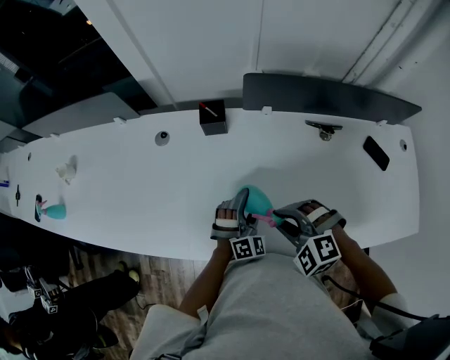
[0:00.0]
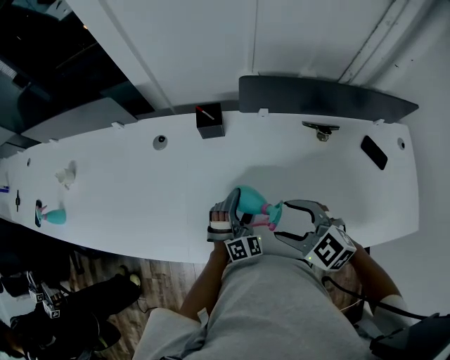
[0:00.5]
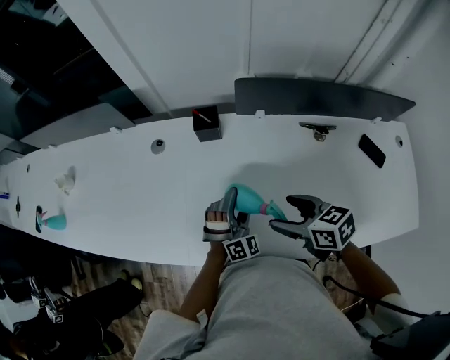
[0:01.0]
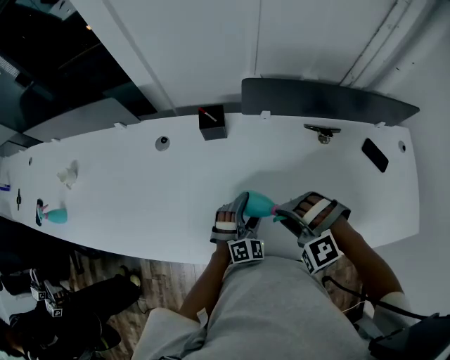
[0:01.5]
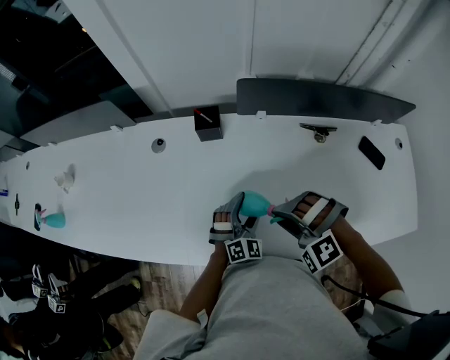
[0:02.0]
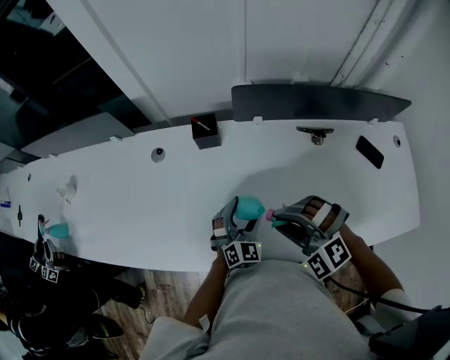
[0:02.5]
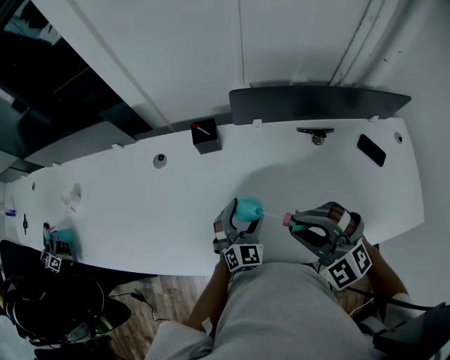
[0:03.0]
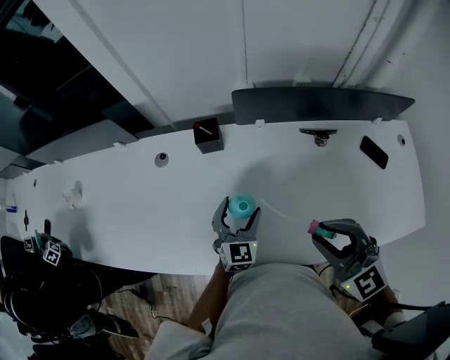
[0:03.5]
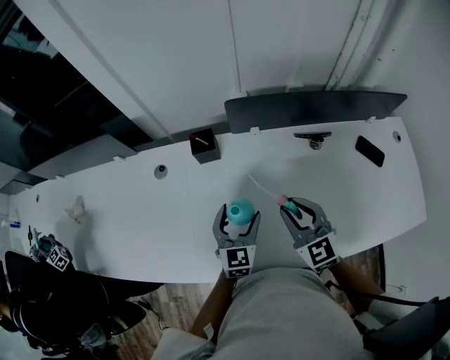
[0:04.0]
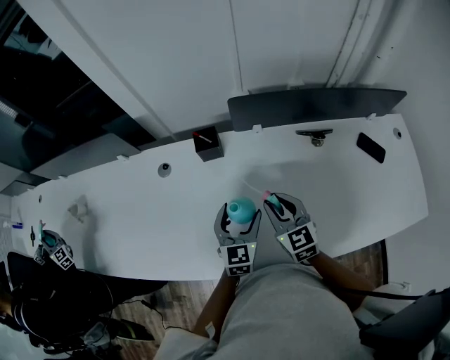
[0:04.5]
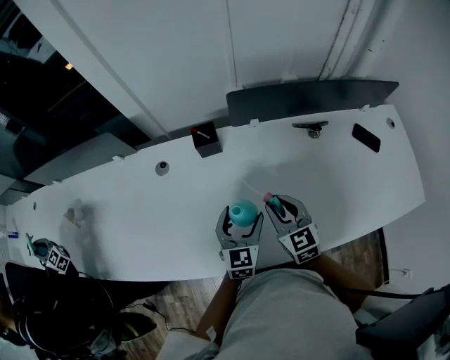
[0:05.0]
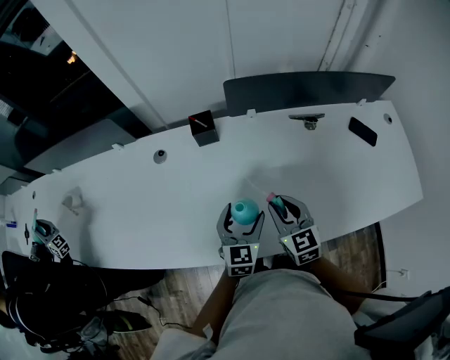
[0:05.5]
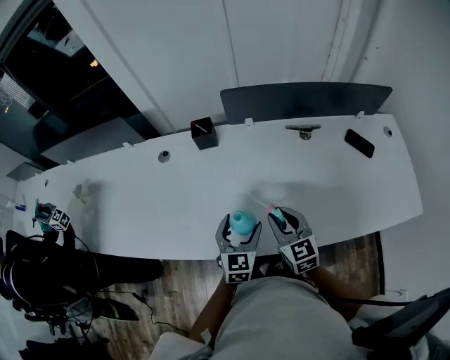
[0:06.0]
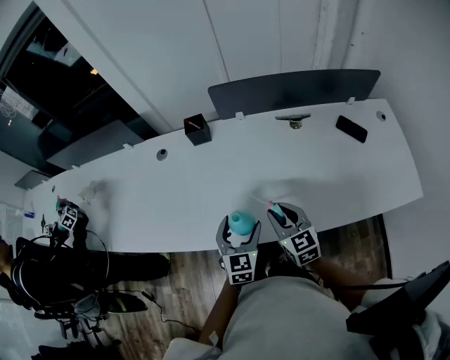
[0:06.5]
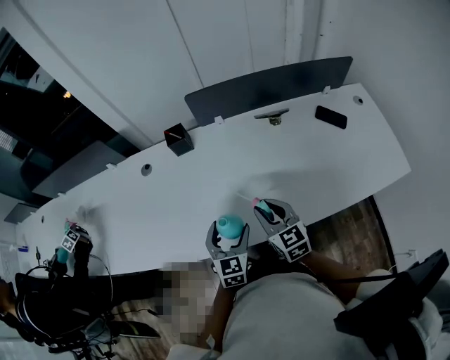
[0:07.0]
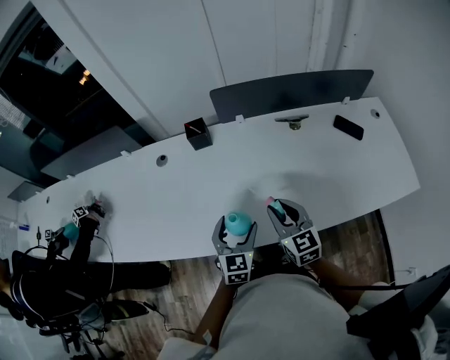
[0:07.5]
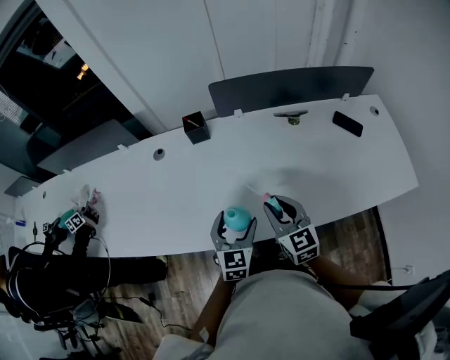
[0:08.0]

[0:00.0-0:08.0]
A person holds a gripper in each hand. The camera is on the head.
0:00.0 to 0:02.0: The right gripper changes its angle by some 30 degrees, and opens, then closes once more.
0:02.0 to 0:04.0: The right gripper travels to the right and forward by about 10 cm, goes upward and returns, roughly 10 cm each way, and twists some 70 degrees clockwise, seen from behind, while the left gripper shifts some 5 cm upward, and rotates some 40 degrees.
0:04.0 to 0:06.0: The two grippers go approximately 10 cm backward.
0:06.0 to 0:08.0: The grippers stay close to where they were, moving slightly.

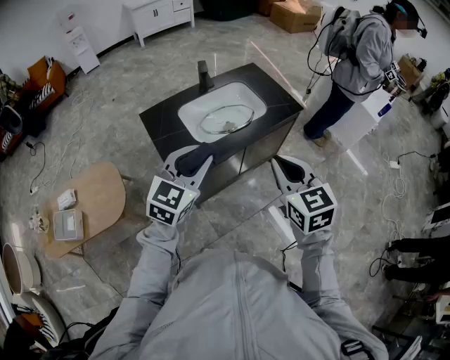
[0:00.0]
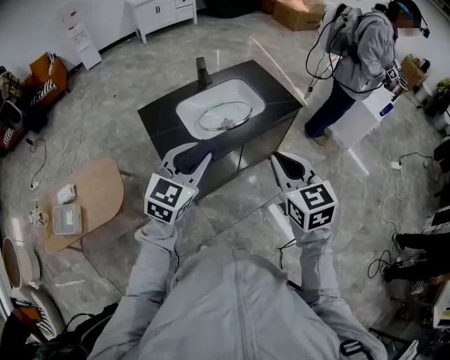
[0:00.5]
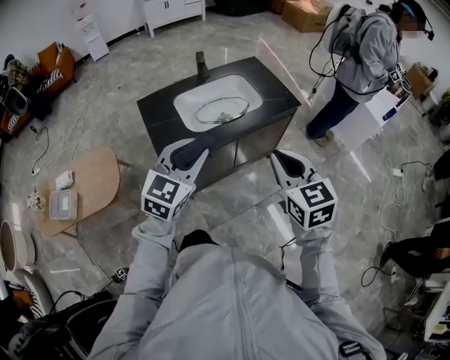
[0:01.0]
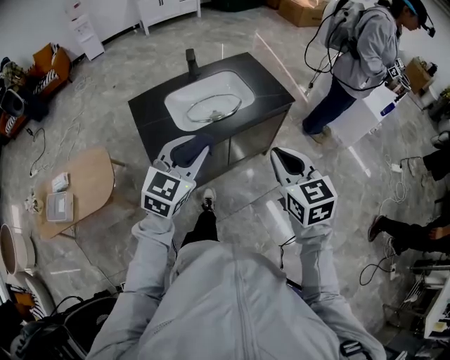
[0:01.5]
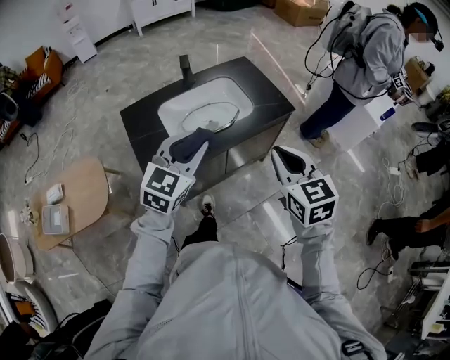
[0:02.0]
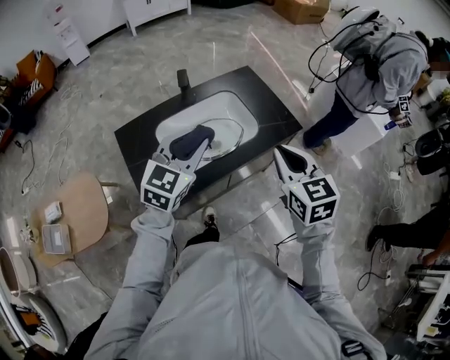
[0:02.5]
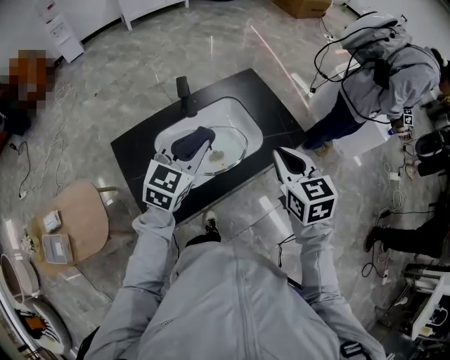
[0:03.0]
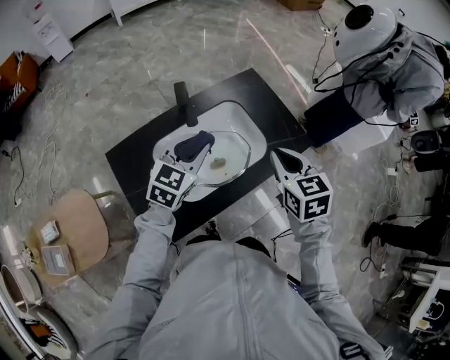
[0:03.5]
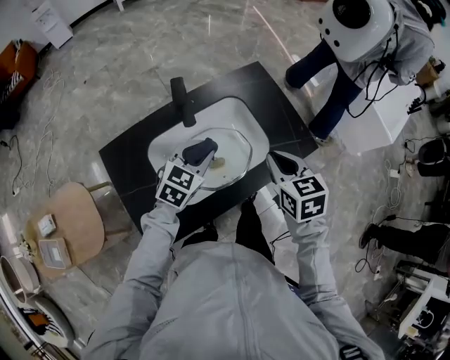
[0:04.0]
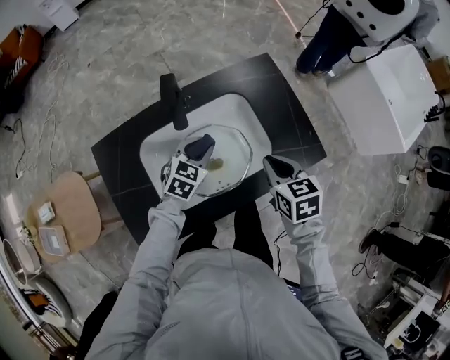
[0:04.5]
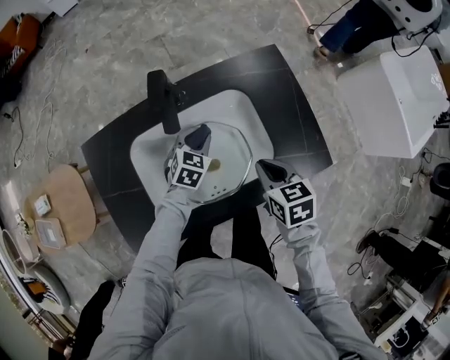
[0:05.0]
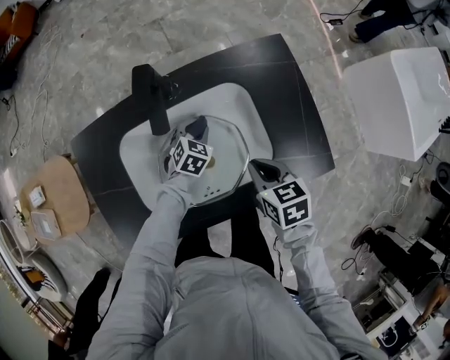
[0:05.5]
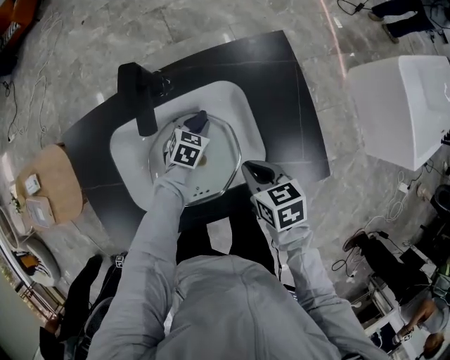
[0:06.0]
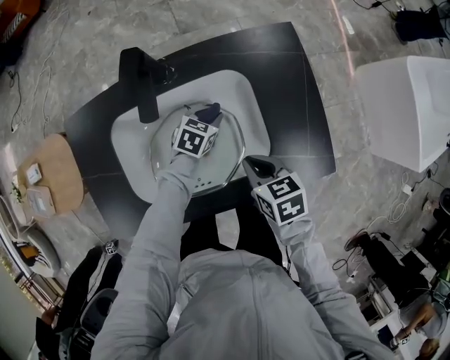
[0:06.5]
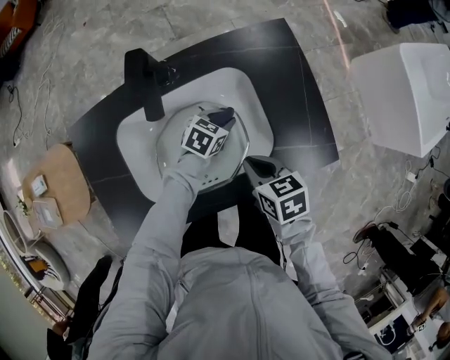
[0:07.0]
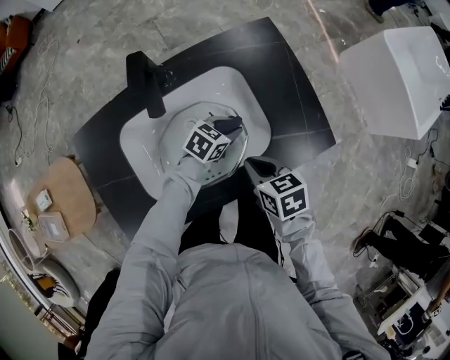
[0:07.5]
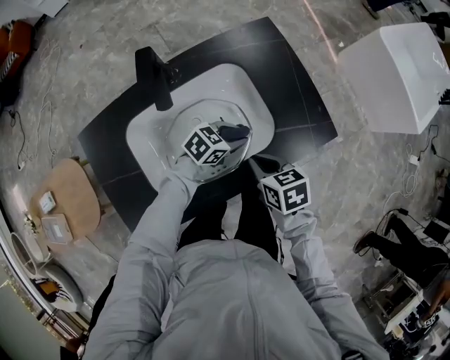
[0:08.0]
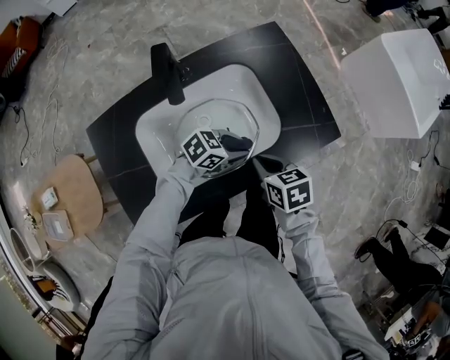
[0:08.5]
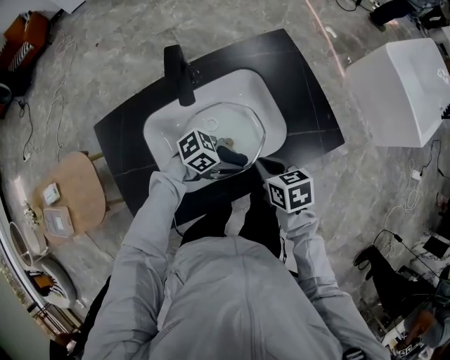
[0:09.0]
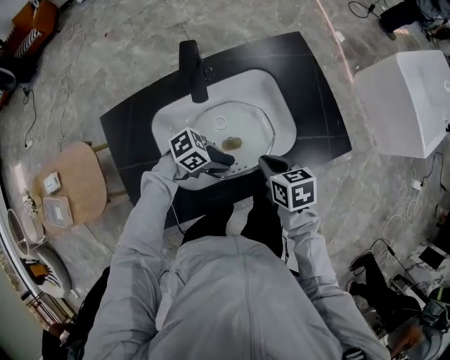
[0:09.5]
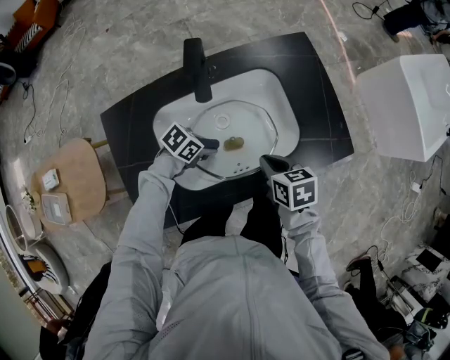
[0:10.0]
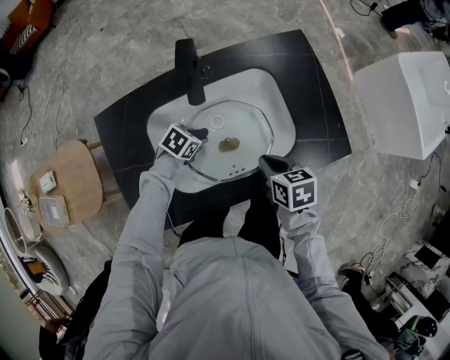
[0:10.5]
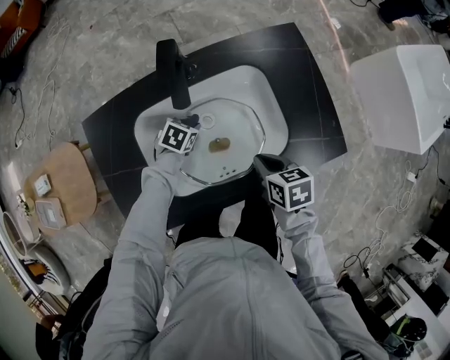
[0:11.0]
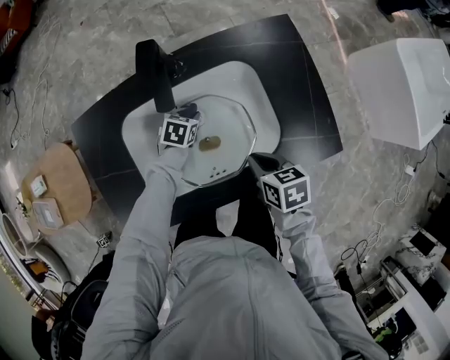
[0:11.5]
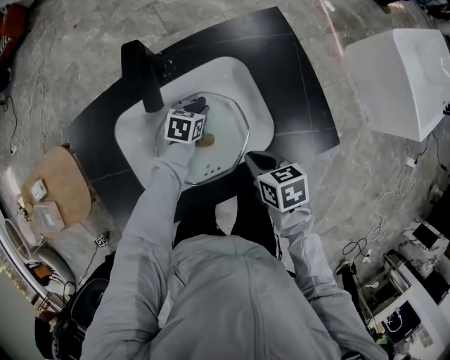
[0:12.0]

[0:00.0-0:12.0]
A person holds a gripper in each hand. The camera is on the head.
0:00.0 to 0:02.0: Both grippers move forward and to the right, roughly 15 cm.
0:02.0 to 0:04.0: Both grippers travel together forward and downward, roughly 35 cm. The right gripper rotates roughly 20 degrees. Meanwhile the left gripper swivels about 20 degrees.
0:04.0 to 0:06.0: The grippers both shift downward by some 25 cm. The left gripper changes its angle by about 30 degrees. Meanwhile the right gripper rotates about 30 degrees.
0:06.0 to 0:08.0: The left gripper moves roughly 20 cm, and changes its angle by about 40 degrees. The right gripper changes place by approximately 5 cm.
0:08.0 to 0:10.0: The left gripper shifts by some 20 cm, and changes its angle by approximately 20 degrees.
0:10.0 to 0:12.0: The left gripper moves about 15 cm, and turns by about 30 degrees.

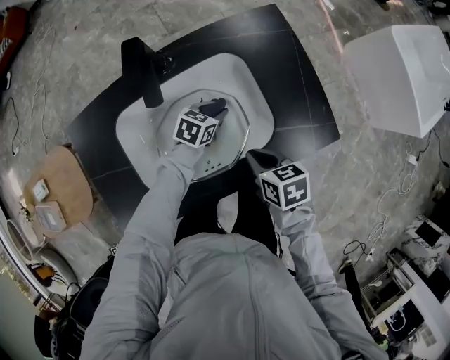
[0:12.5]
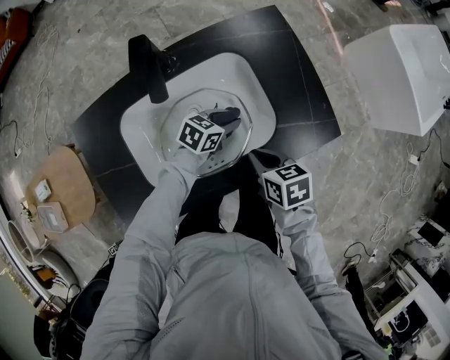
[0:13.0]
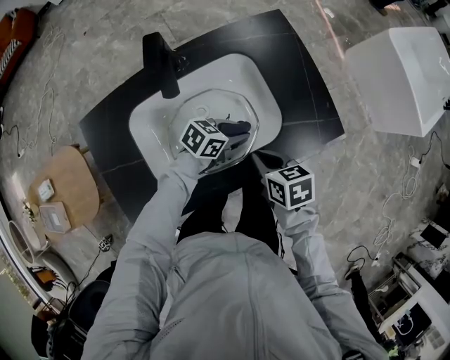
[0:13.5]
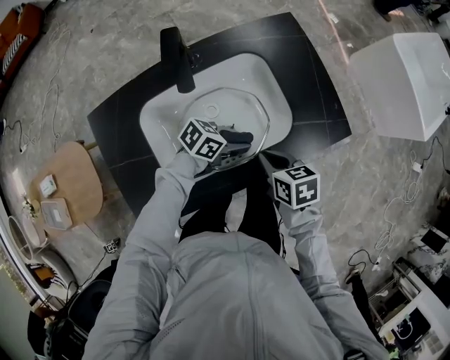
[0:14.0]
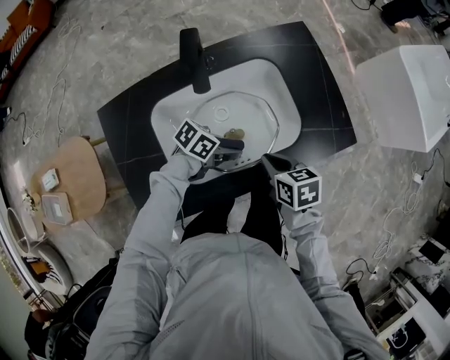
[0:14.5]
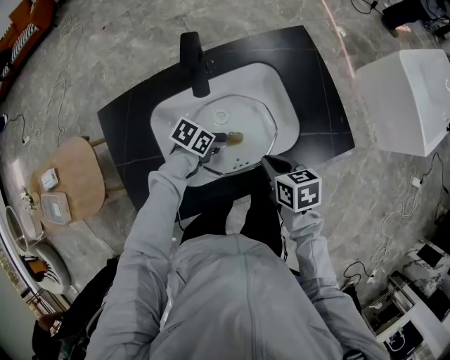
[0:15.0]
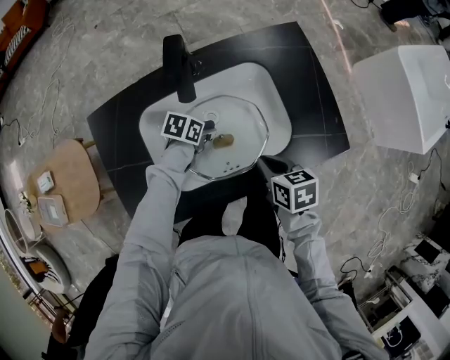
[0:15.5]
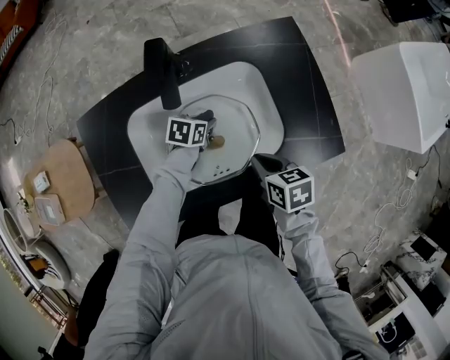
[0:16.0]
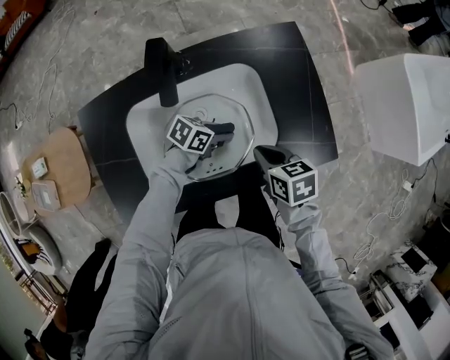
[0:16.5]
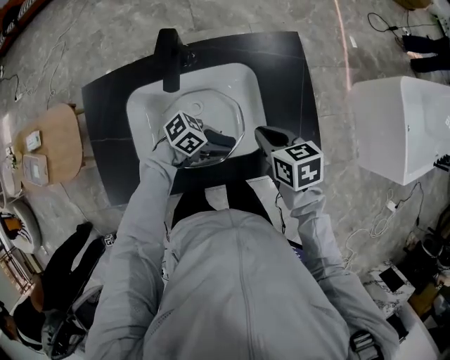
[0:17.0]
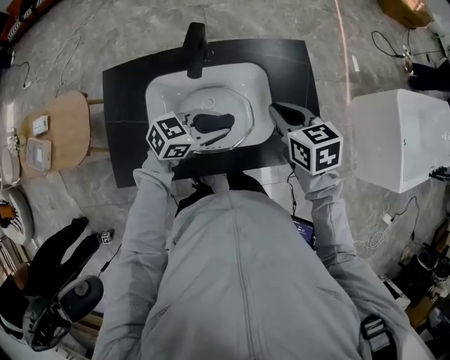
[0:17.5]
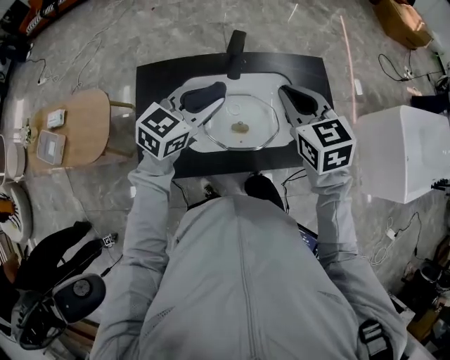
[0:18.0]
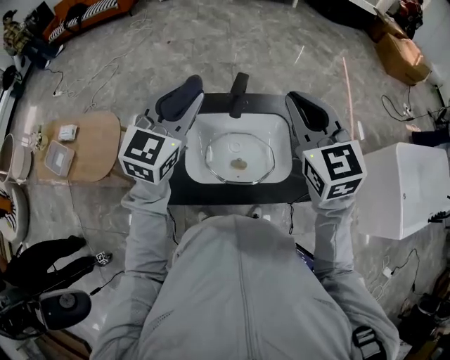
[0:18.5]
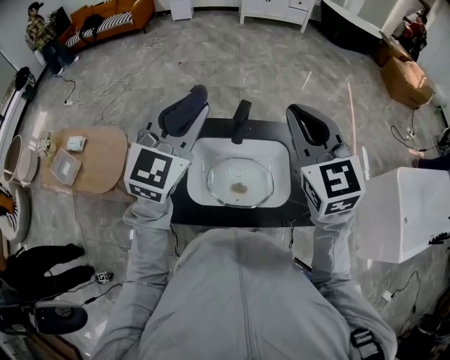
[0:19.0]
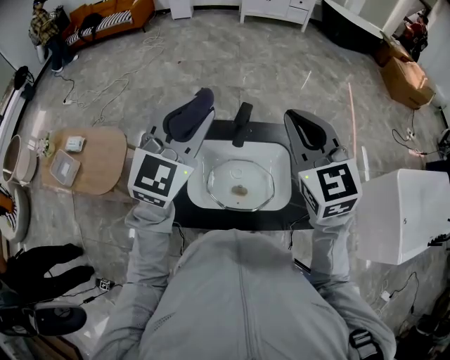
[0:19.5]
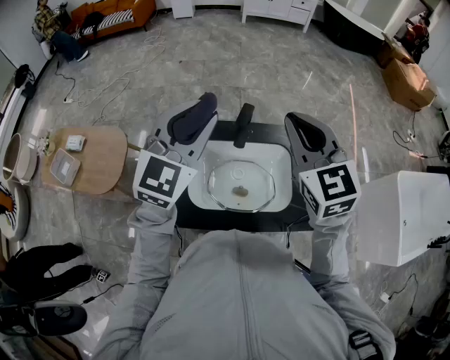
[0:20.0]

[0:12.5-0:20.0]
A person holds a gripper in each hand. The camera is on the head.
0:12.5 to 0:14.5: The right gripper moves approximately 5 cm. Meanwhile the left gripper changes place by approximately 15 cm, and swivels approximately 30 degrees.
0:14.5 to 0:16.5: The left gripper moves about 10 cm. The right gripper ends up some 10 cm from where it was.
0:16.5 to 0:18.0: Both grippers move upward, roughly 30 cm. The left gripper rotates some 60 degrees, while the right gripper turns by some 50 degrees.
0:18.0 to 0:20.0: Both grippers move upward, roughly 15 cm. The left gripper swivels roughly 40 degrees. Meanwhile the right gripper turns by roughly 20 degrees.
